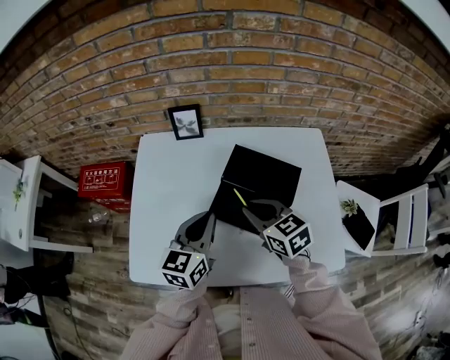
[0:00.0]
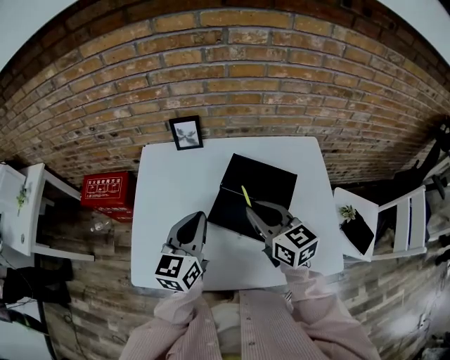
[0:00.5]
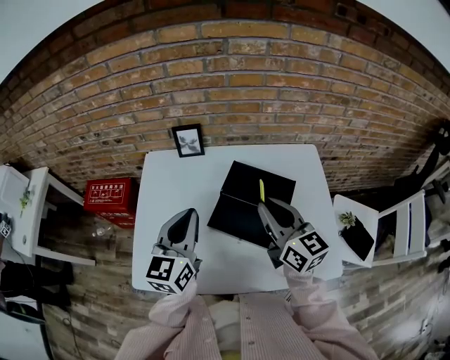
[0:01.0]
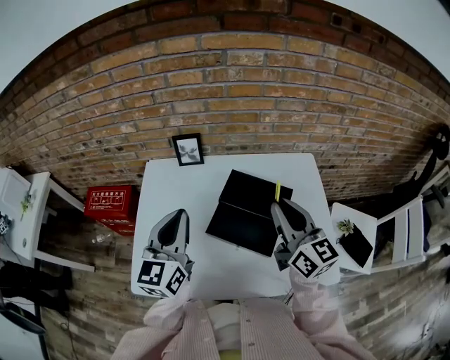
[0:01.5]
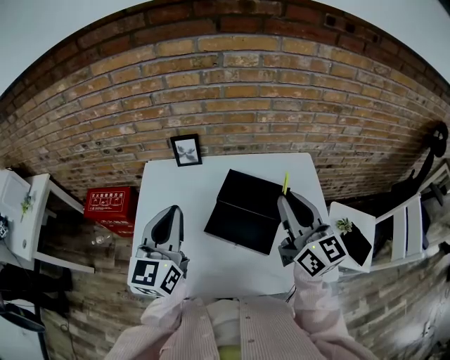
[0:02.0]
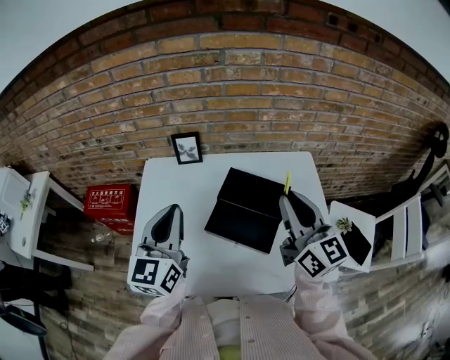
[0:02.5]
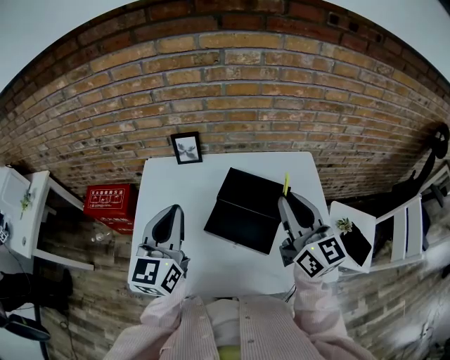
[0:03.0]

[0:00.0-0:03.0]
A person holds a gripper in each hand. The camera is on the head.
0:00.0 to 0:01.5: The left gripper travels upward by some 10 cm. The right gripper travels upward and to the right by about 20 cm, and points its fingers roughly 30 degrees further upward.
0:01.5 to 0:03.0: The grippers stay close to where they were, moving slightly.

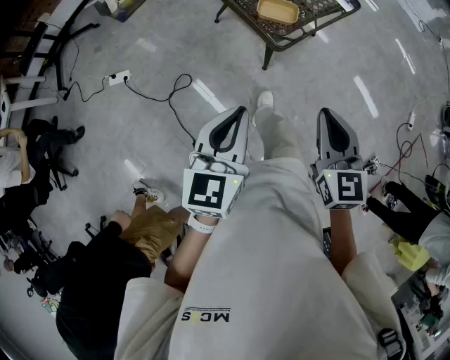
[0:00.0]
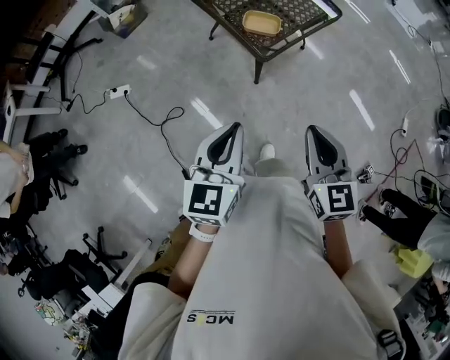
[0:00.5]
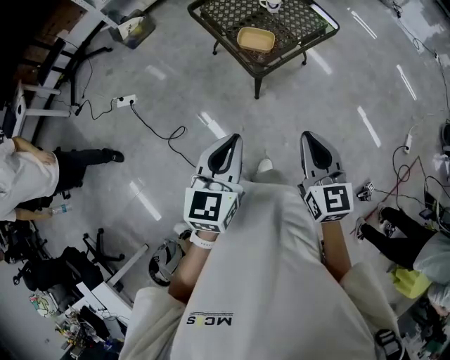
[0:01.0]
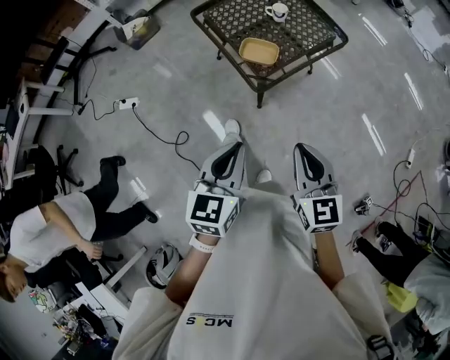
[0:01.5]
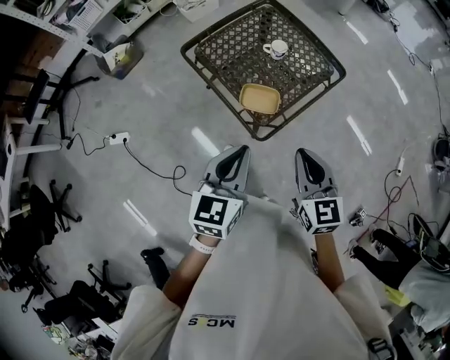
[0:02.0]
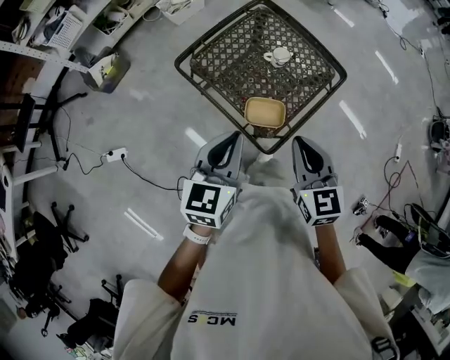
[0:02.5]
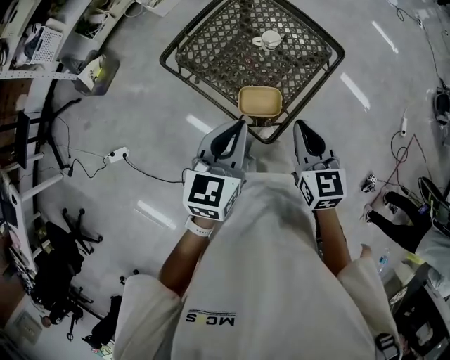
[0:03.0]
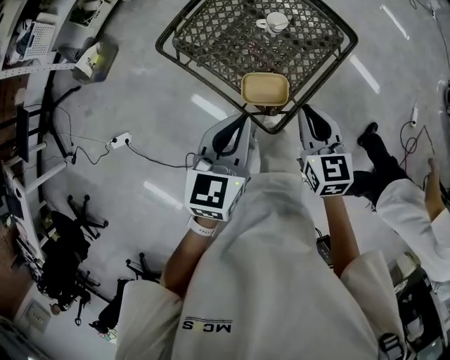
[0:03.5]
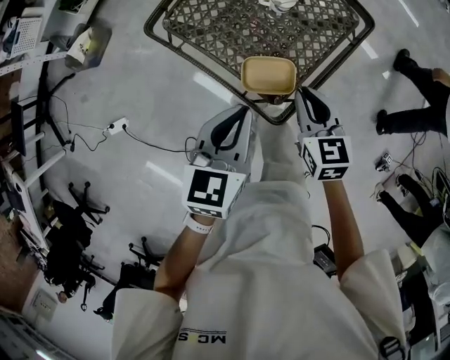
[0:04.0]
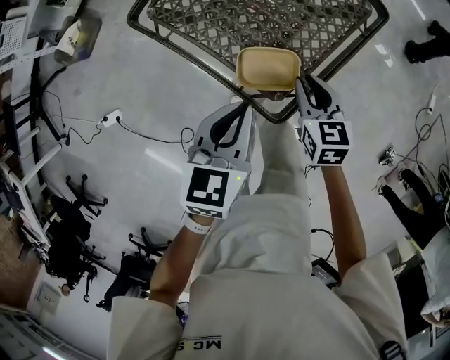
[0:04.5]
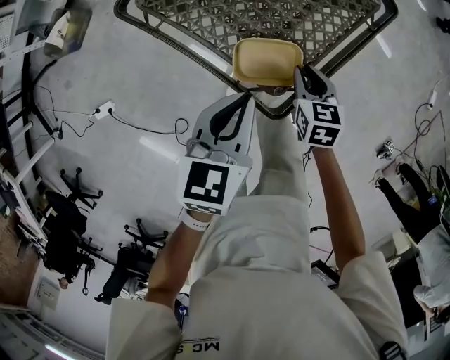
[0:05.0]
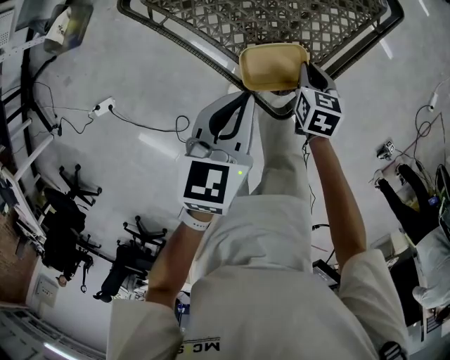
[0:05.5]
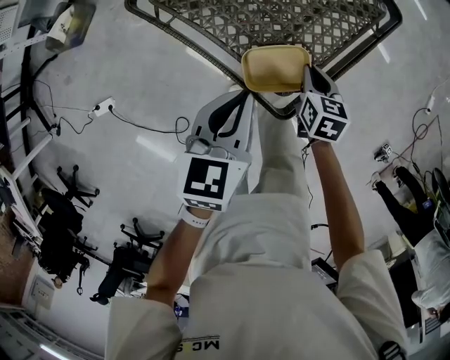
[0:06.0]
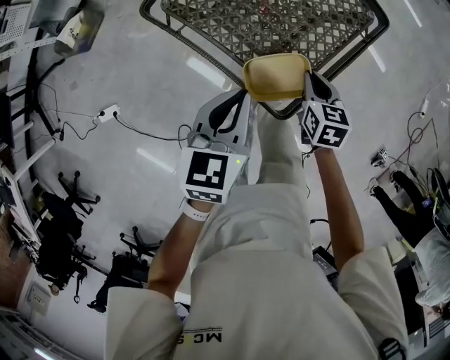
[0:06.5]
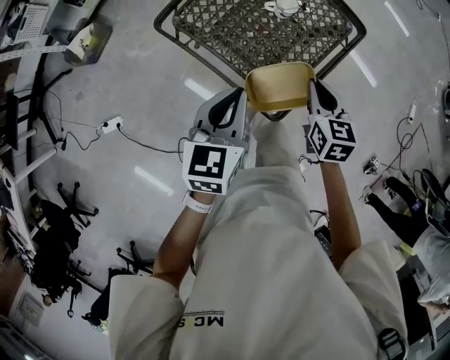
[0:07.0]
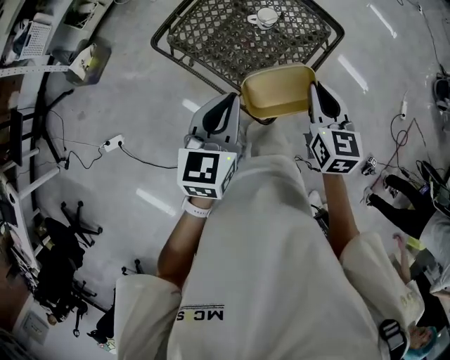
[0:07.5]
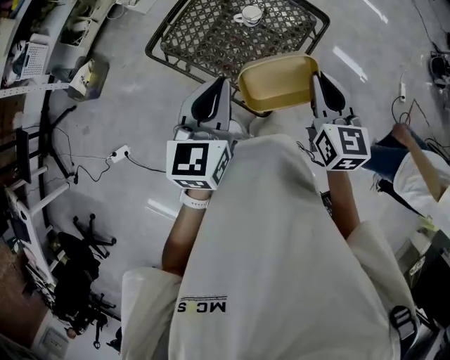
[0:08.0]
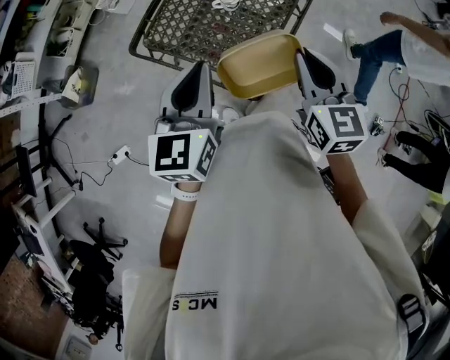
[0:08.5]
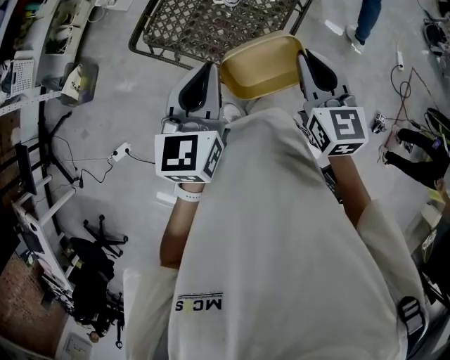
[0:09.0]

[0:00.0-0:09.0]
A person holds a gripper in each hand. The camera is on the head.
0:00.0 to 0:02.0: Both grippers move forward, roughly 25 cm.
0:02.0 to 0:04.5: The two grippers go approximately 30 cm downward and forward. The right gripper changes its angle by about 20 degrees.
0:04.5 to 0:07.0: The two grippers go some 10 cm upward.
0:07.0 to 0:09.0: Both grippers travel together upward, about 15 cm.

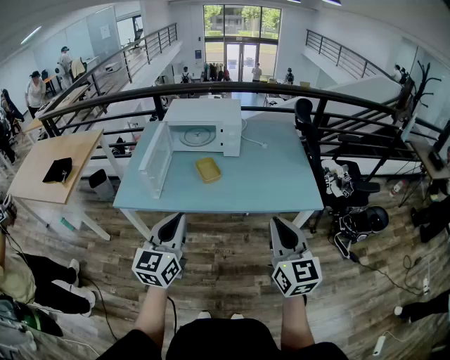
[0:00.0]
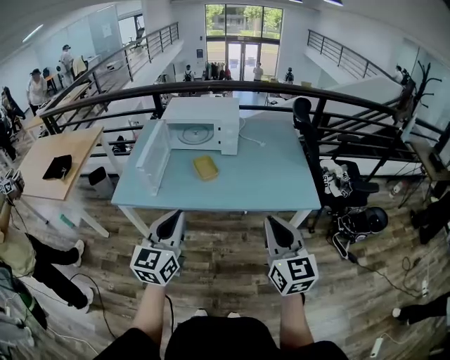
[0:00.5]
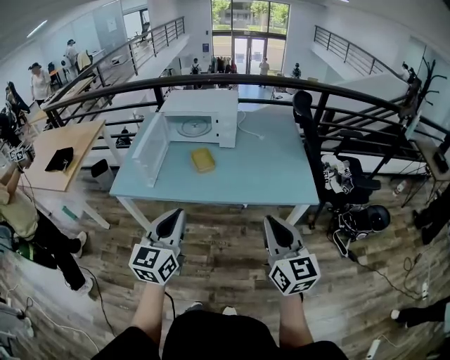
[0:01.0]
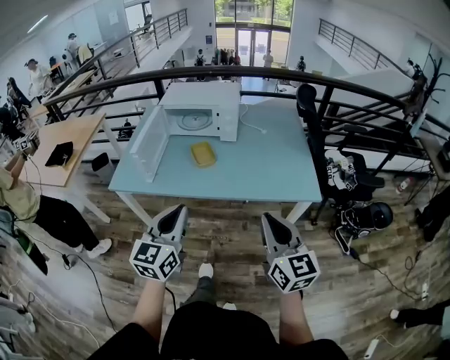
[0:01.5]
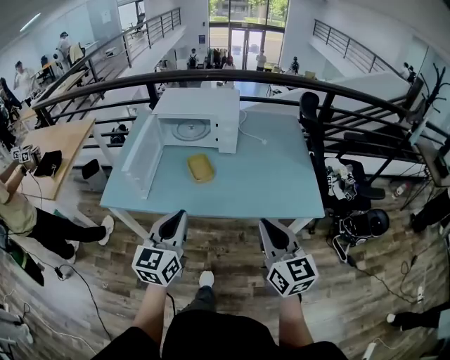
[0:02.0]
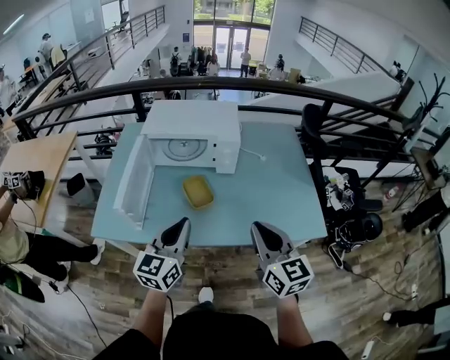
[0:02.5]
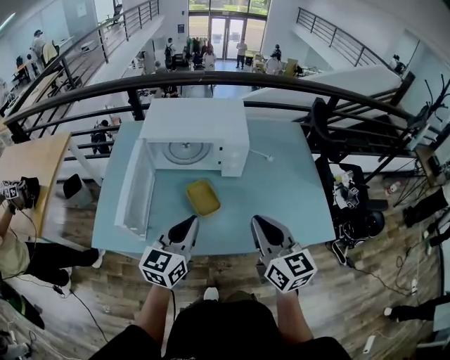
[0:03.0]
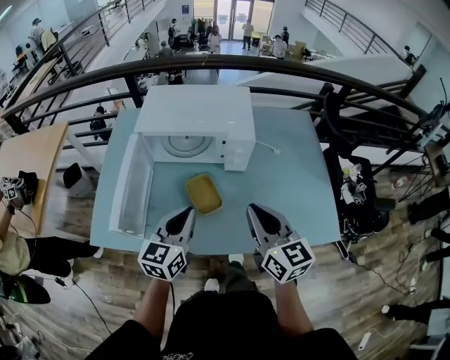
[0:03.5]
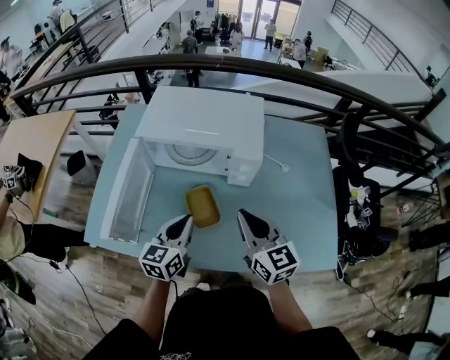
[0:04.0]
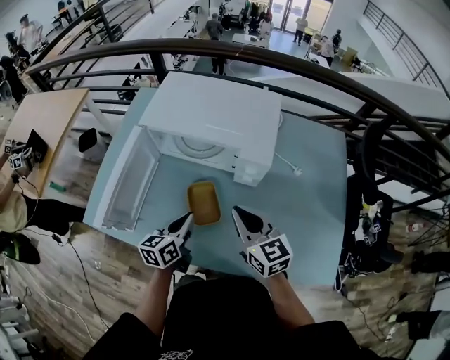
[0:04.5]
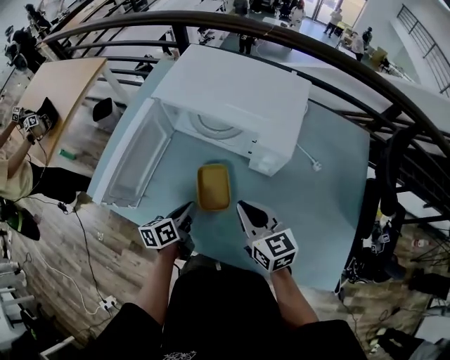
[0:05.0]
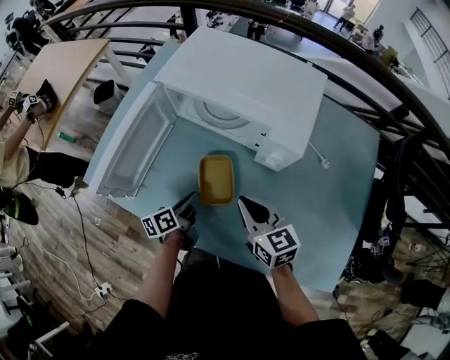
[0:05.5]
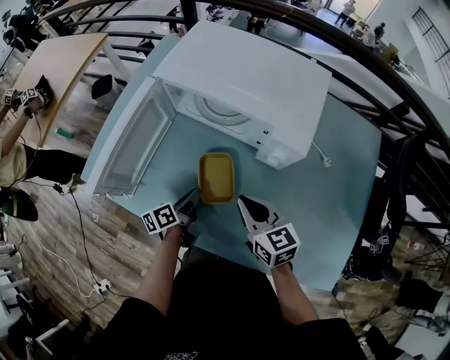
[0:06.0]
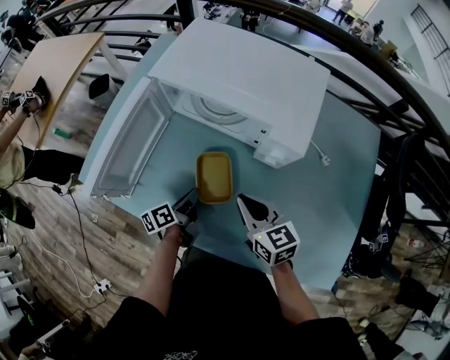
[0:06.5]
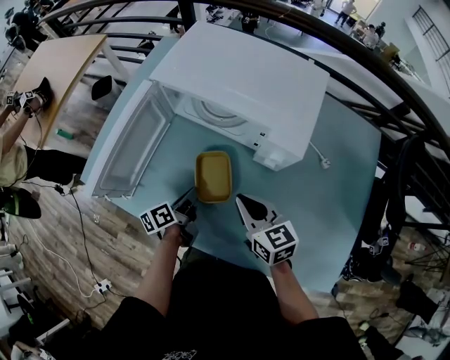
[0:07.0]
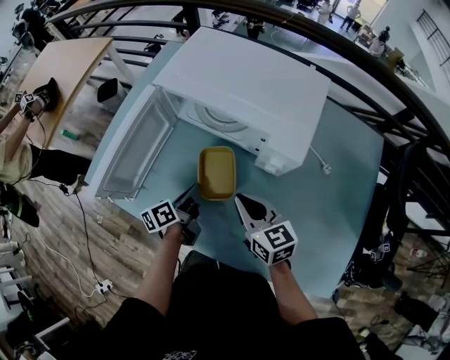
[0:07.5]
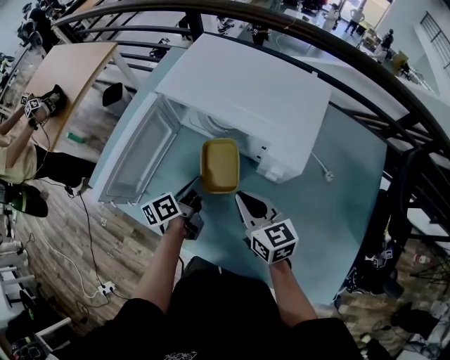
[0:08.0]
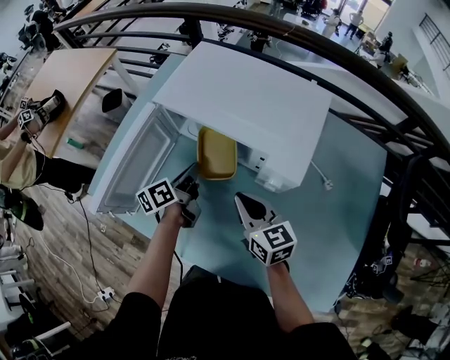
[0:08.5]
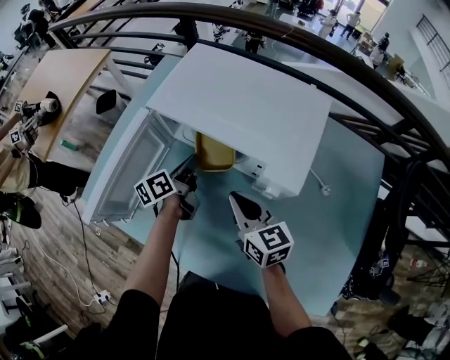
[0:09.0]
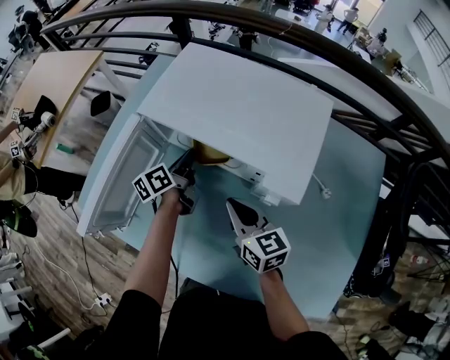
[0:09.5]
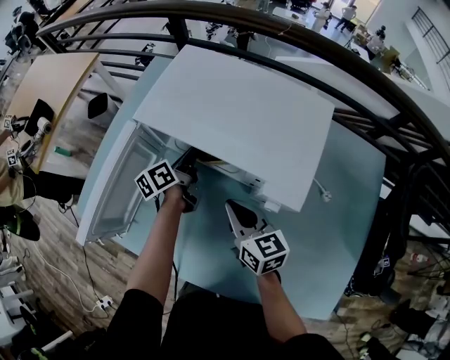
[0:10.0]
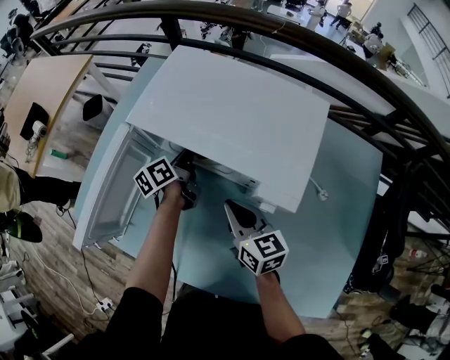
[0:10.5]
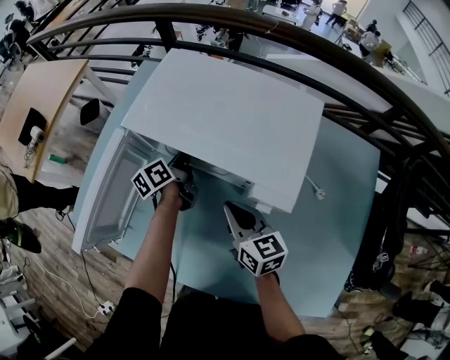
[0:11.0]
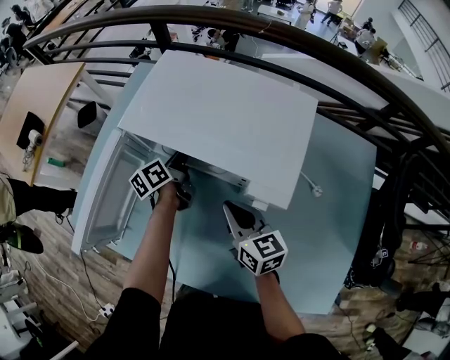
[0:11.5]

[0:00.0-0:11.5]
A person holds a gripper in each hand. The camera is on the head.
0:00.0 to 0:02.0: The grippers both shift forward by some 10 cm.
0:02.0 to 0:04.0: The grippers both shift forward by approximately 35 cm.
0:04.0 to 0:06.0: Both grippers travel together downward, approximately 20 cm. The right gripper changes its angle by approximately 30 degrees, while the left gripper rotates around the line of its fingers by roughly 50 degrees, counterclockwise from behind.
0:06.0 to 0:07.5: The left gripper shifts by roughly 5 cm.
0:07.5 to 0:09.5: The right gripper travels forward by approximately 10 cm; the left gripper is displaced forward by about 20 cm.
0:09.5 to 0:11.5: The left gripper changes place by roughly 5 cm.

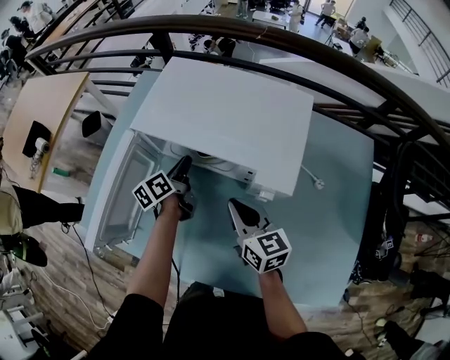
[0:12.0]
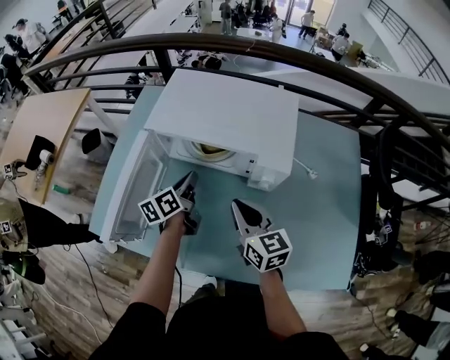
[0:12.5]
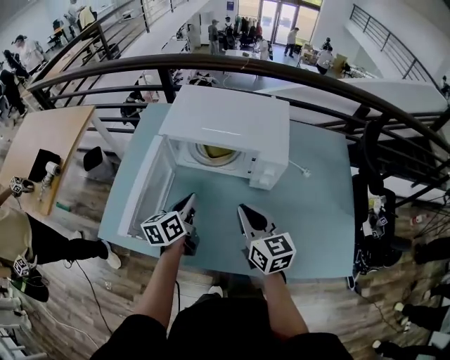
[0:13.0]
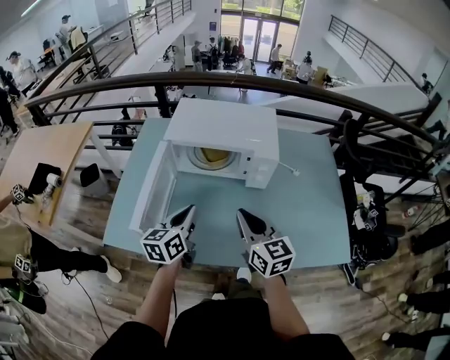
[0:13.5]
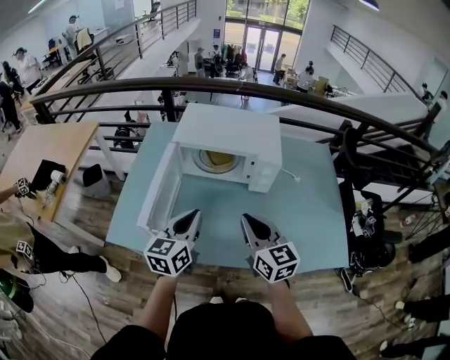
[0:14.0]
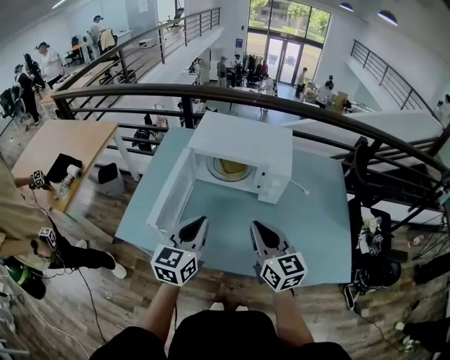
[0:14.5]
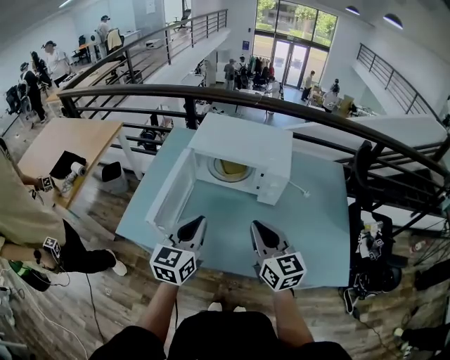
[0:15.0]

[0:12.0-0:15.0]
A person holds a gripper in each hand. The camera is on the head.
0:12.0 to 0:13.5: The grippers both shift backward and upward by about 25 cm. The right gripper swivels about 20 degrees. The left gripper rotates approximately 40 degrees.
0:13.5 to 0:15.0: The right gripper shifts some 5 cm upward, while the left gripper is displaced upward and backward by some 10 cm, and swivels roughly 20 degrees.
